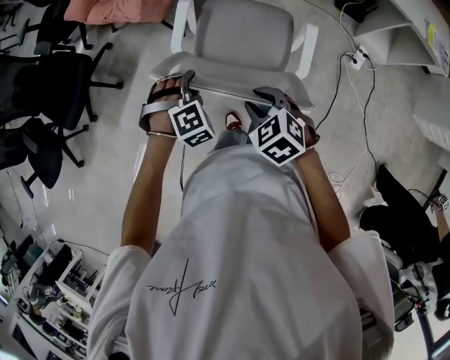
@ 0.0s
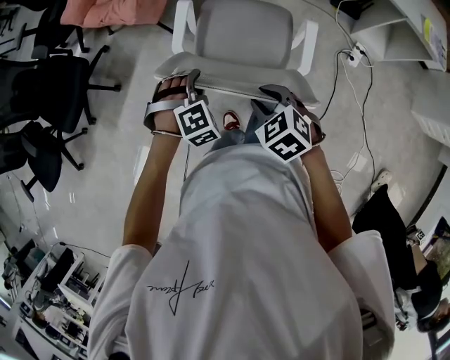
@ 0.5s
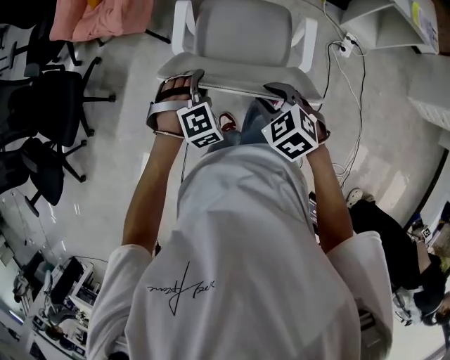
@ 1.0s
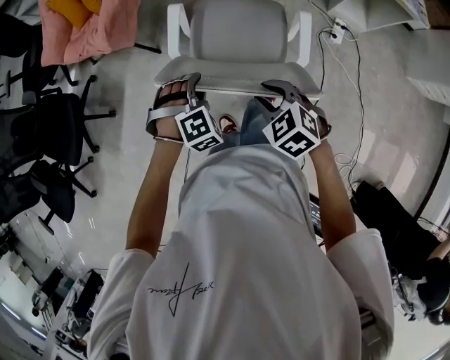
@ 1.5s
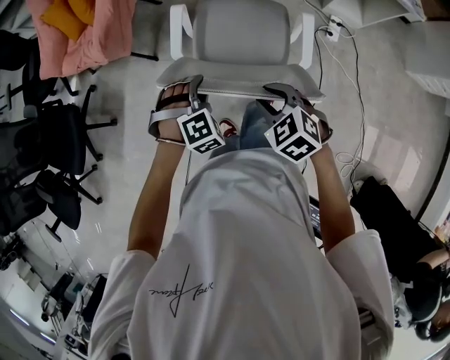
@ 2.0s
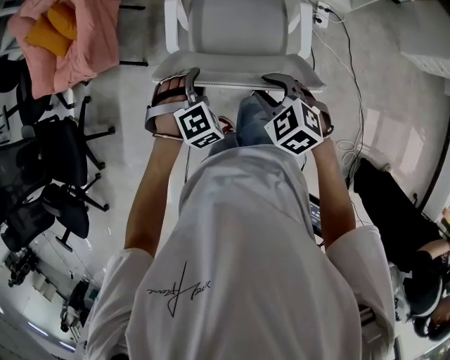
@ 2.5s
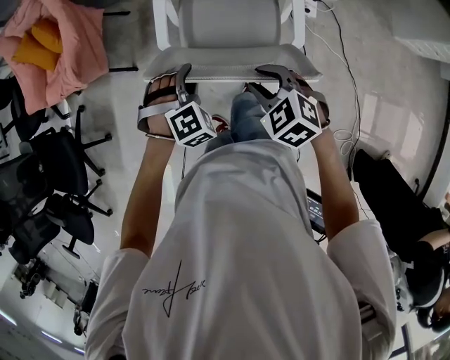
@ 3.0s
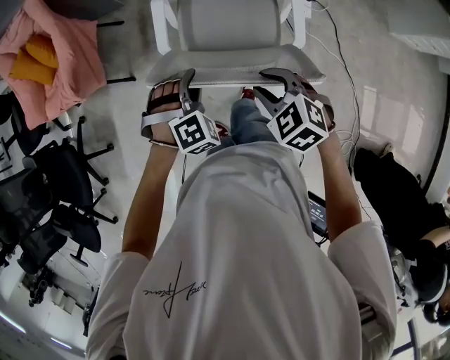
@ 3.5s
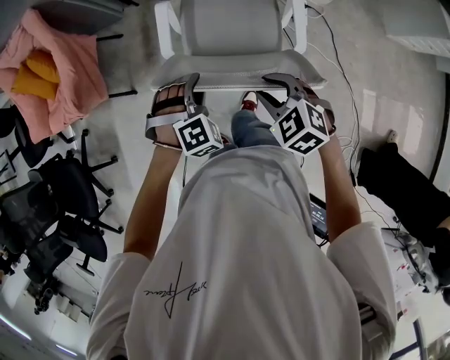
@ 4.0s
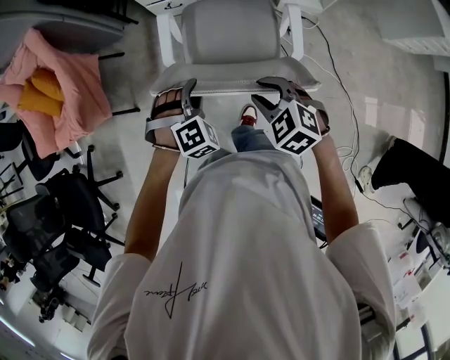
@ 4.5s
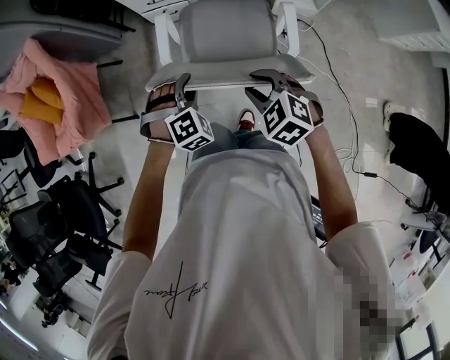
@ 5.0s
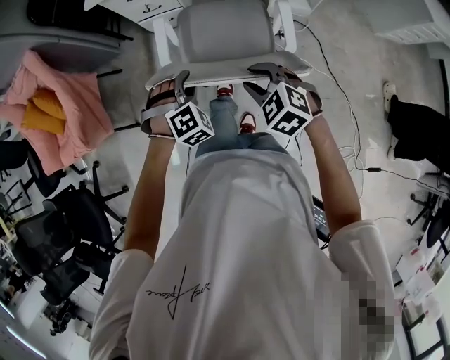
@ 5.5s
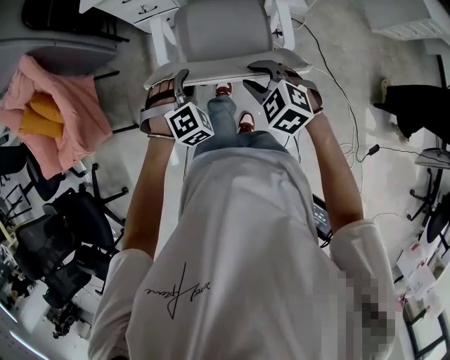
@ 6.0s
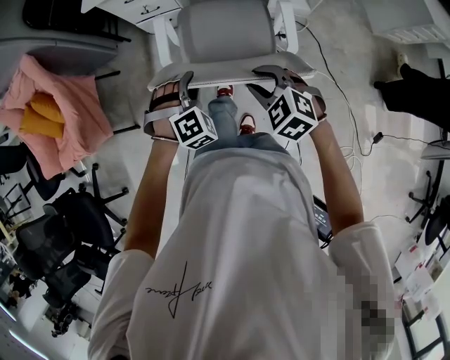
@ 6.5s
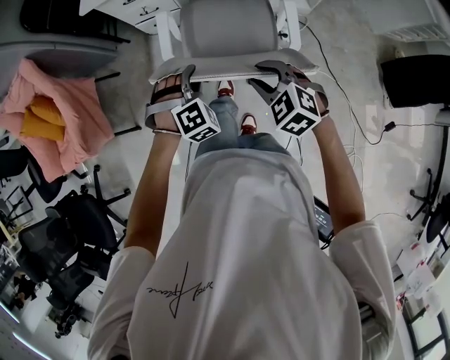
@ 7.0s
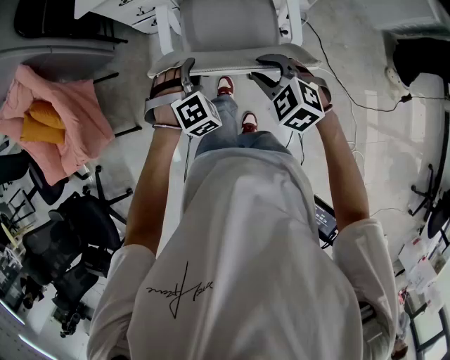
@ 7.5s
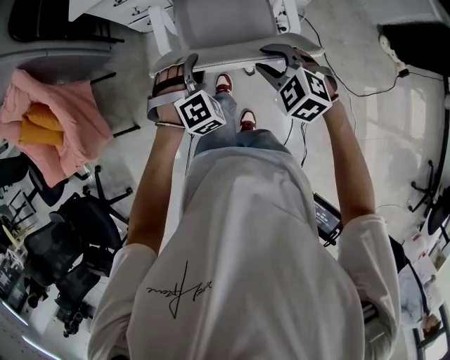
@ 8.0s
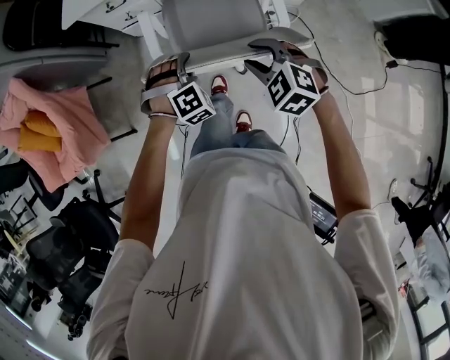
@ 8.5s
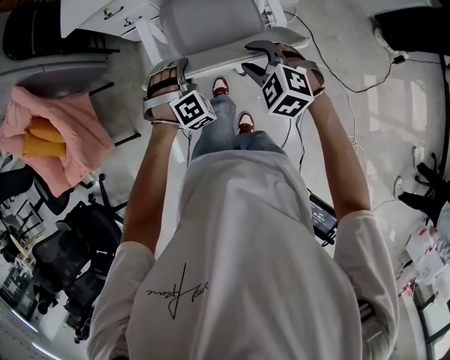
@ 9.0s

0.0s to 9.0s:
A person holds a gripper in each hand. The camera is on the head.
0.0s to 2.0s: Both grippers move to the right, about 15 cm.
2.0s to 4.5s: The two grippers go some 20 cm to the right and forward.
4.5s to 7.0s: The two grippers go about 10 cm forward and to the right.
7.0s to 9.0s: Both grippers travel together to the right, approximately 5 cm. The left gripper closes its fingers.

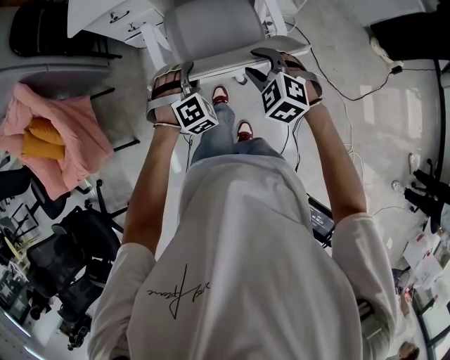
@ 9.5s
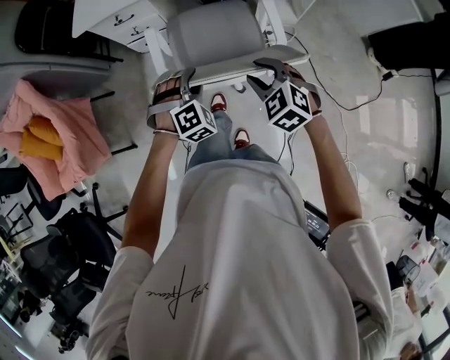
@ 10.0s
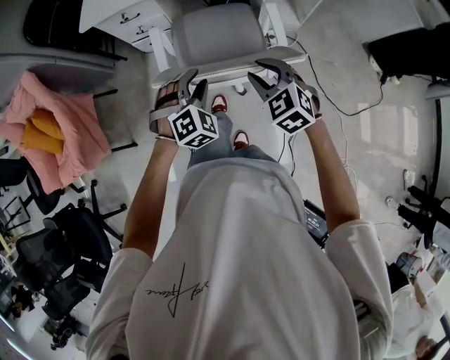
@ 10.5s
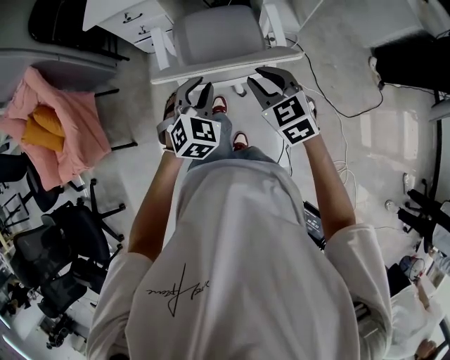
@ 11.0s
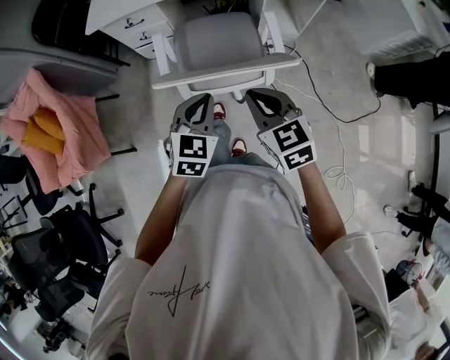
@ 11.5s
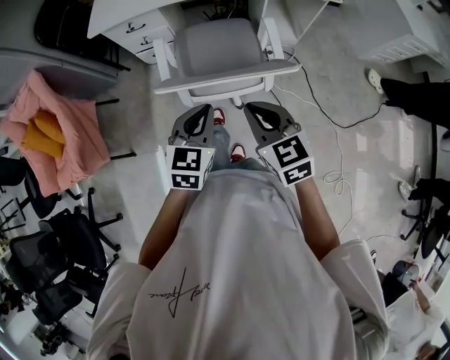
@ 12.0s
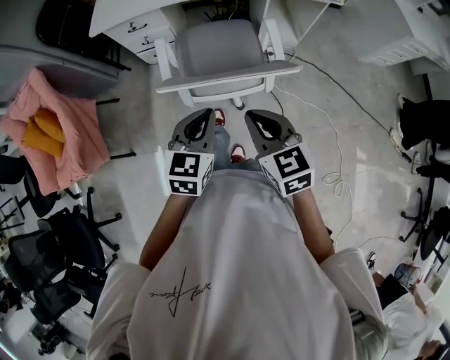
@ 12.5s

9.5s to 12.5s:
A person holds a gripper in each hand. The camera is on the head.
9.5s to 11.0s: The left gripper is displaced upward and backward by approximately 10 cm, and rotates roughly 40 degrees; the right gripper moves upward, about 5 cm, and changes its angle by roughly 30 degrees.
11.0s to 12.5s: The two grippers go some 10 cm backward and upward. The left gripper changes its angle by about 40 degrees. The right gripper closes up.

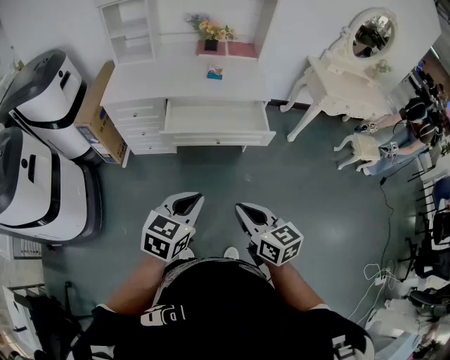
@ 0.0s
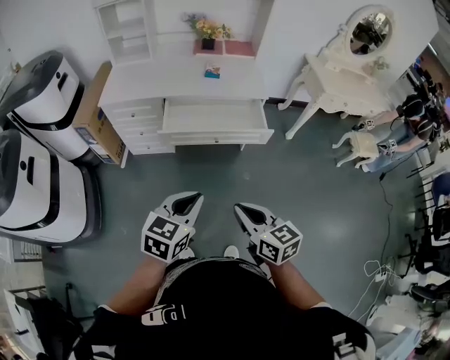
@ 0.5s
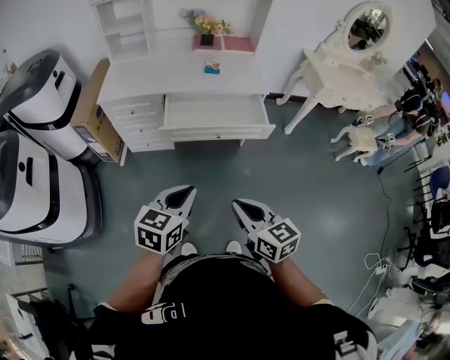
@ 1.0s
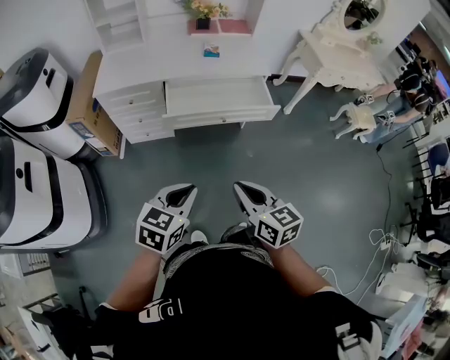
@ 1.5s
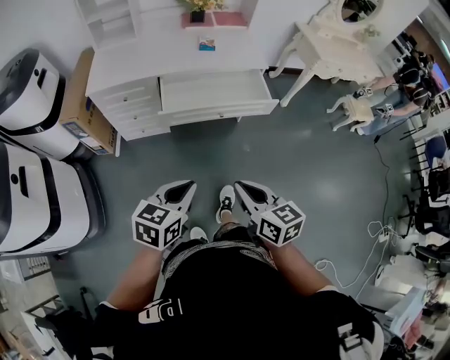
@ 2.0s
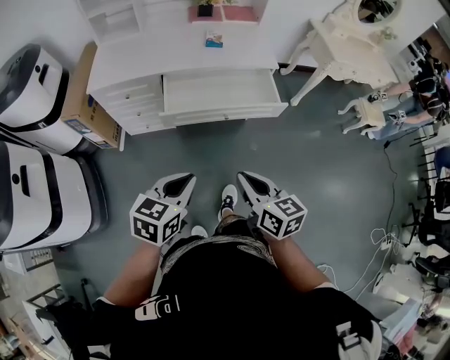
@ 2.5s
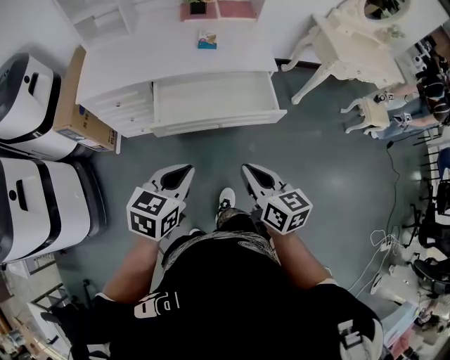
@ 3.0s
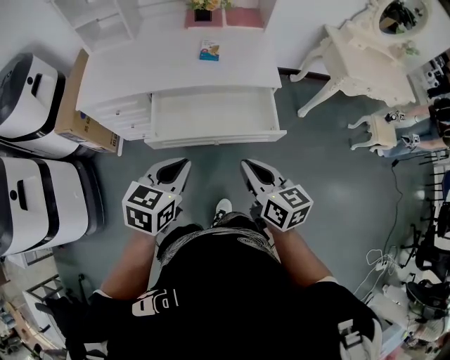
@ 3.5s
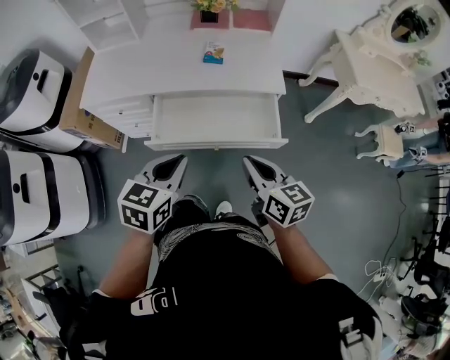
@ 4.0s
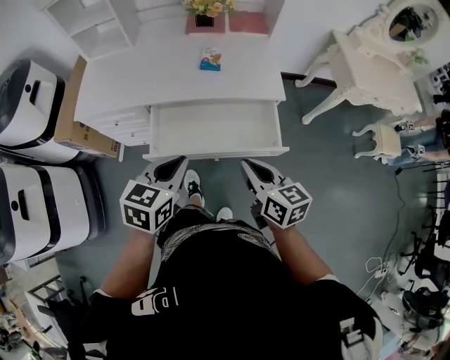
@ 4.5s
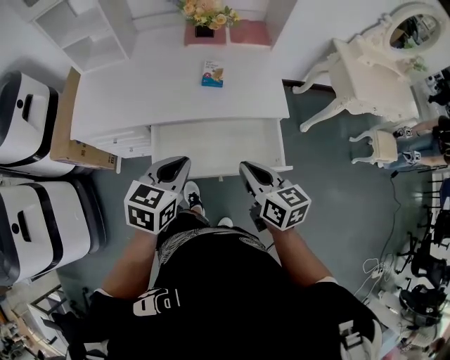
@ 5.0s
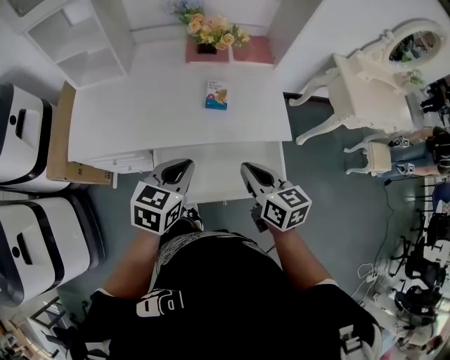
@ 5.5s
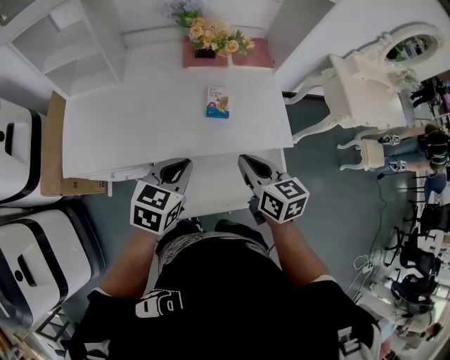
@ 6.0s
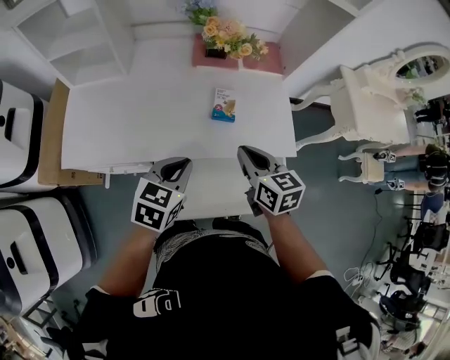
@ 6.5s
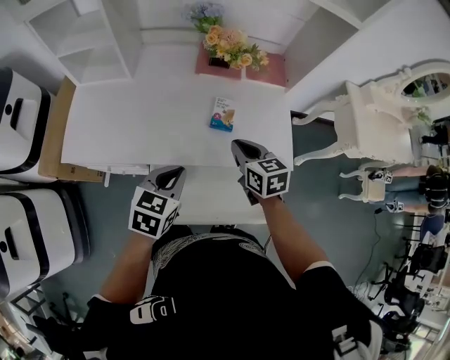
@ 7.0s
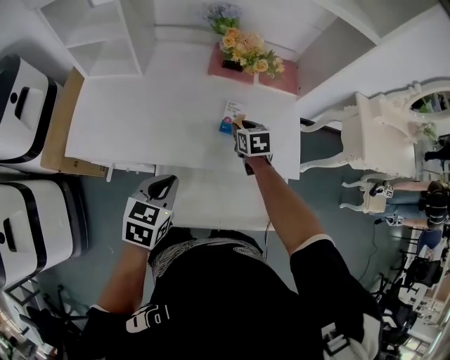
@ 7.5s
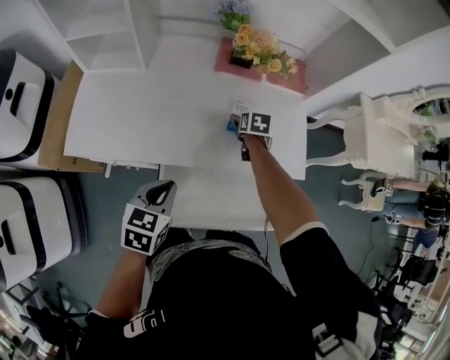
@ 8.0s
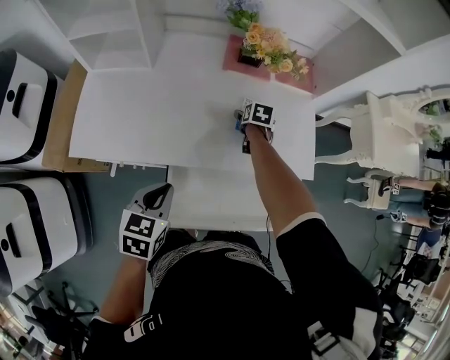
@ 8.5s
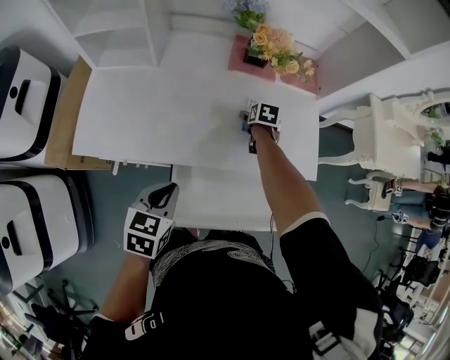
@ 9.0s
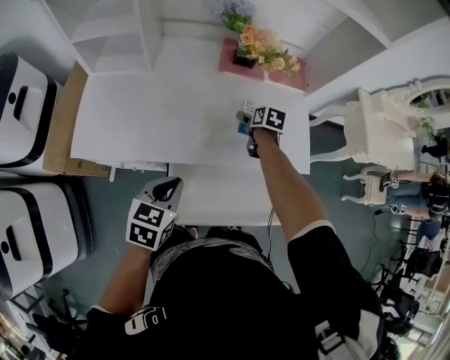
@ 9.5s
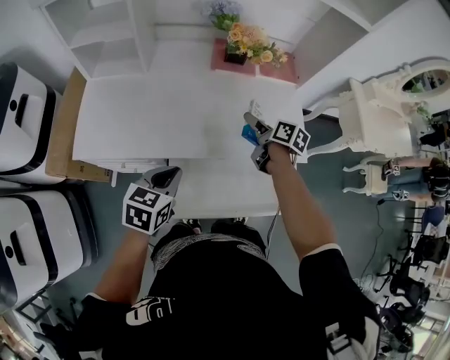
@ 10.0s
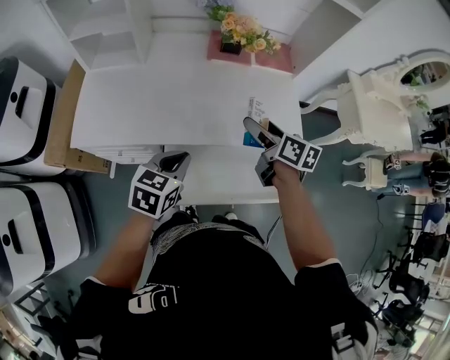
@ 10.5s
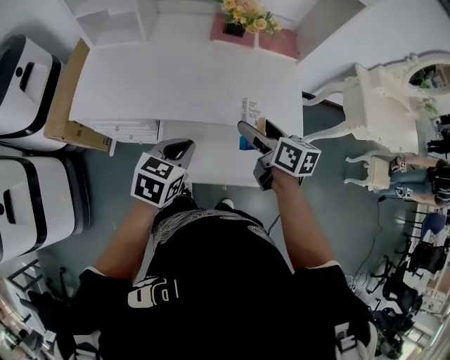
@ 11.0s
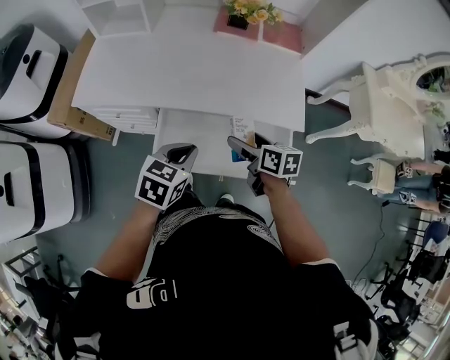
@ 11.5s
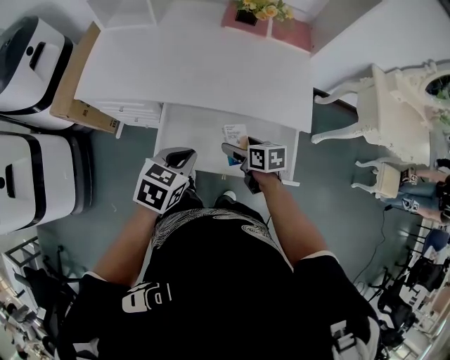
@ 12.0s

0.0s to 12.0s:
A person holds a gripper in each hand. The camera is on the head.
0.0s to 2.0s: The two grippers go roughly 10 cm to the left.
2.0s to 4.0s: The two grippers go some 30 cm forward.
4.0s to 6.0s: The grippers both shift forward by approximately 30 cm.
6.0s to 8.0s: The left gripper is displaced to the left and downward by approximately 10 cm. Meanwhile the right gripper is displaced forward and downward by roughly 30 cm, changes its angle by approximately 30 degrees, and opens its fingers.
8.0s to 10.0s: The right gripper shifts approximately 15 cm upward and backward, and changes its angle by about 40 degrees.
10.0s to 12.0s: The right gripper is displaced backward and downward by some 25 cm, and rotates approximately 40 degrees; the left gripper goes some 15 cm backward and to the right.

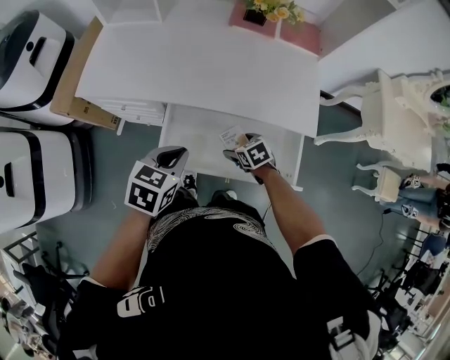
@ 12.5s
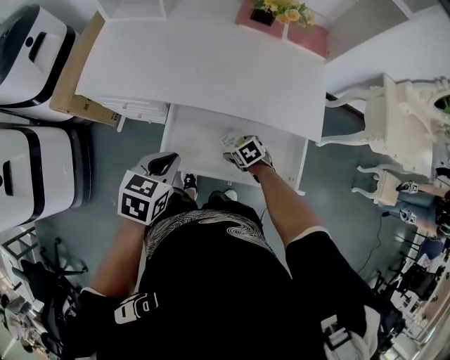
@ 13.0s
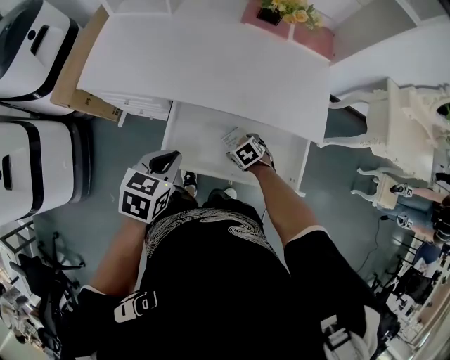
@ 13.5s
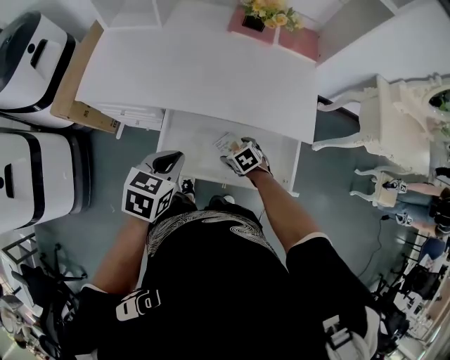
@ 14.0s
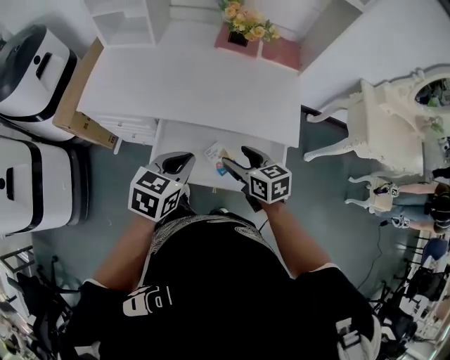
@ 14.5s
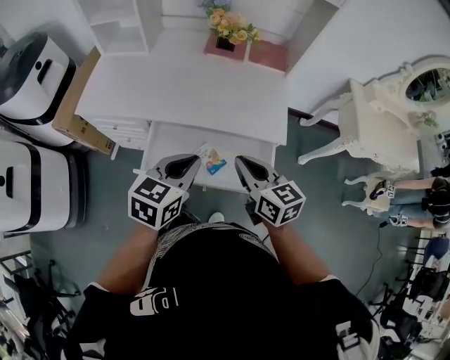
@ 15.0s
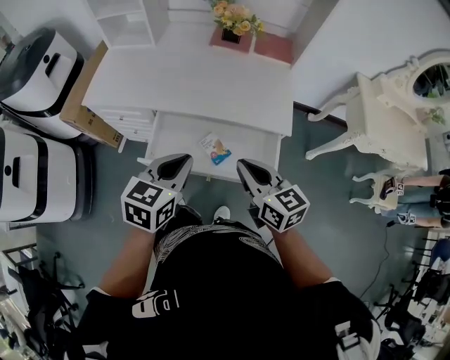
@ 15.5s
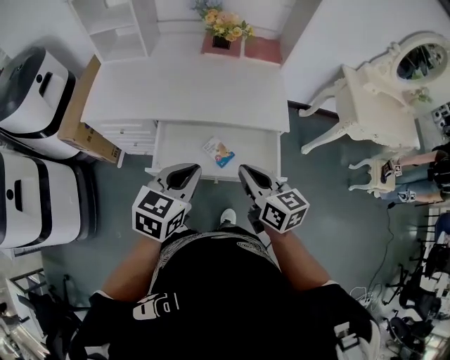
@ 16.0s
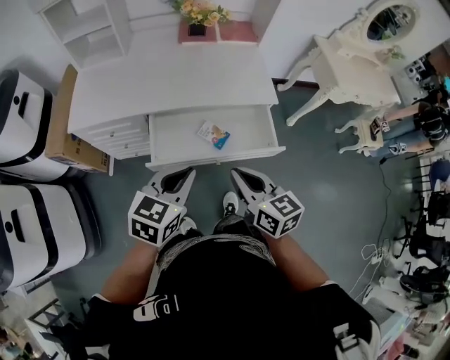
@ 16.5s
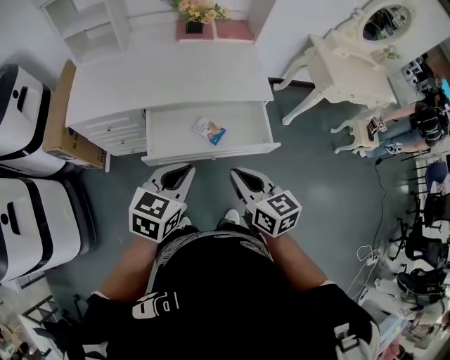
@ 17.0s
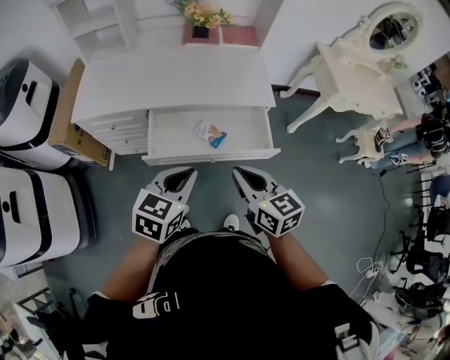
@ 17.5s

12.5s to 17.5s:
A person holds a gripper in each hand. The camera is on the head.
12.5s to 15.0s: The right gripper travels upward by some 30 cm, angles its fingers upward, by some 40 degrees, and closes. Meanwhile the left gripper moves about 15 cm.
15.0s to 17.5s: The two grippers go some 15 cm backward.
